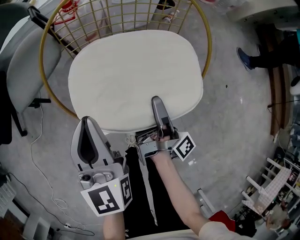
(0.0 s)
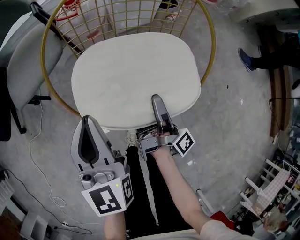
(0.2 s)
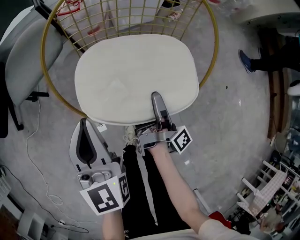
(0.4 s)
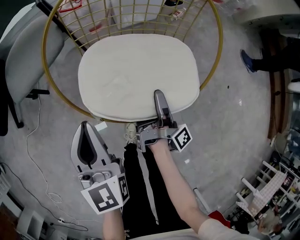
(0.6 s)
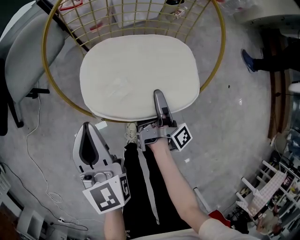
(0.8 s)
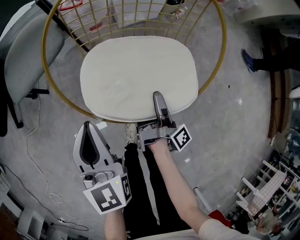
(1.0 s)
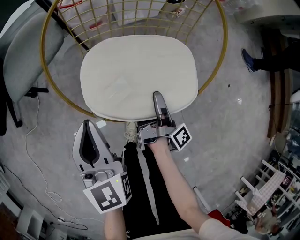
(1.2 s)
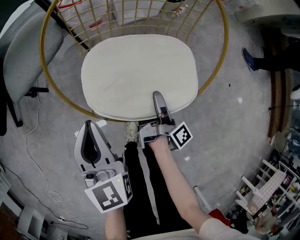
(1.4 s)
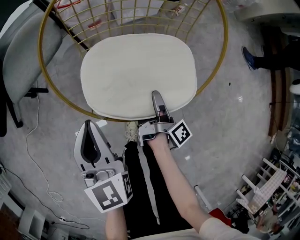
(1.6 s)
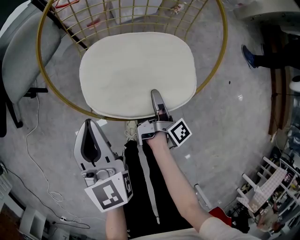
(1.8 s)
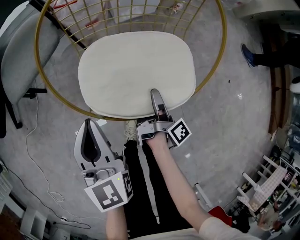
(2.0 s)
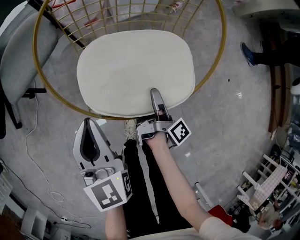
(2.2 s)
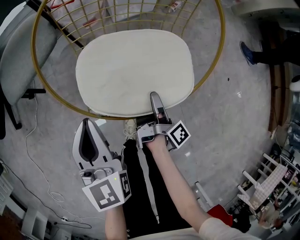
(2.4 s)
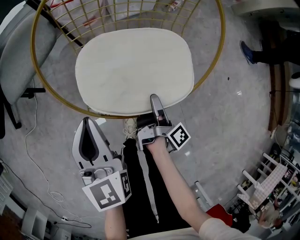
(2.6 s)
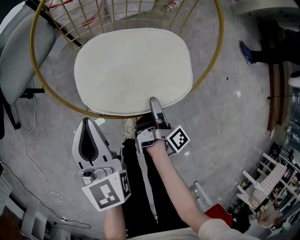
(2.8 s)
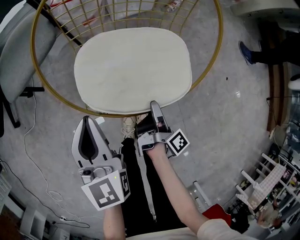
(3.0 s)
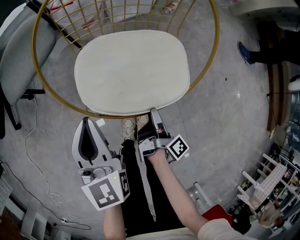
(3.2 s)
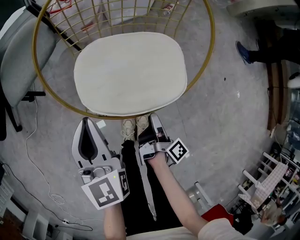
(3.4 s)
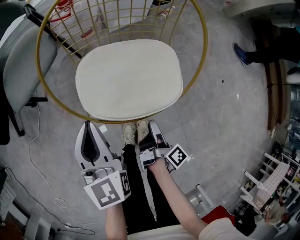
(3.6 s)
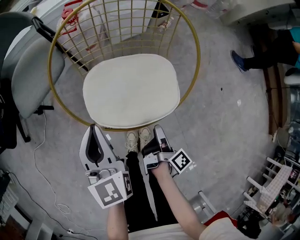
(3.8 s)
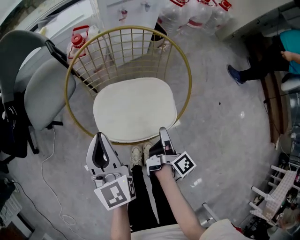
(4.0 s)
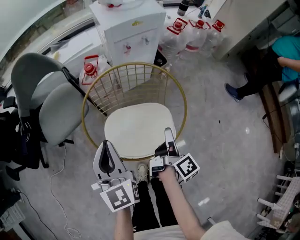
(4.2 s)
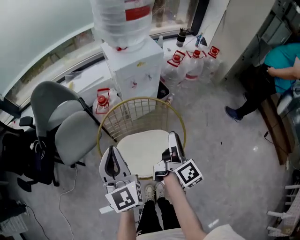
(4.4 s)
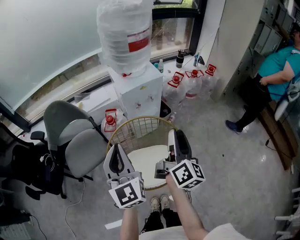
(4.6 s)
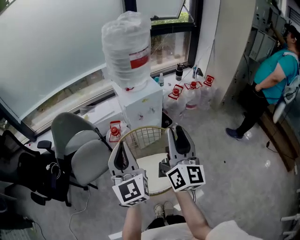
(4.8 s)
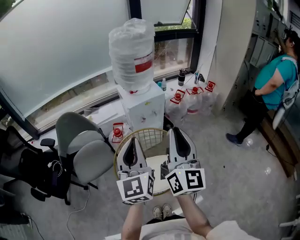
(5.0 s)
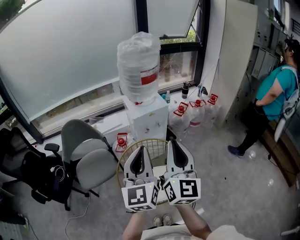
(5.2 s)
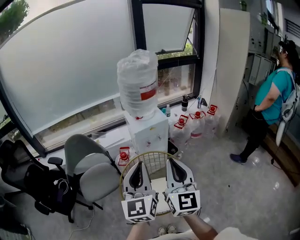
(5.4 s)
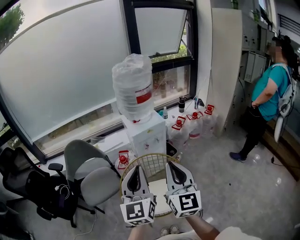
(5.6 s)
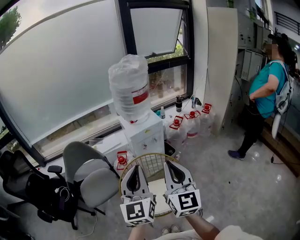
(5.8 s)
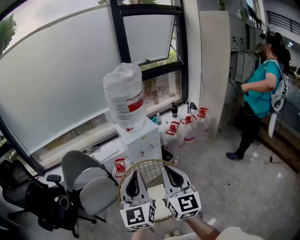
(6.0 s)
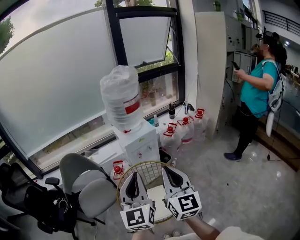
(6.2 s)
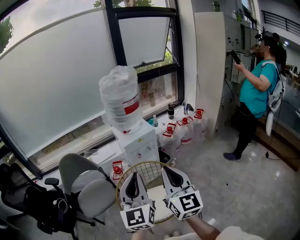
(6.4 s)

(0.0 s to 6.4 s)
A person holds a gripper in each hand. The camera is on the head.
0.0 s - 1.6 s: The left gripper heads downward, covering approximately 5 cm.
3.2 s - 4.8 s: The left gripper goes some 50 cm upward, and tips its fingers upward by approximately 30 degrees.
4.8 s - 6.4 s: The left gripper shifts by roughly 10 cm.

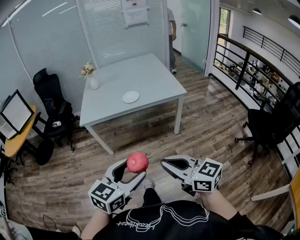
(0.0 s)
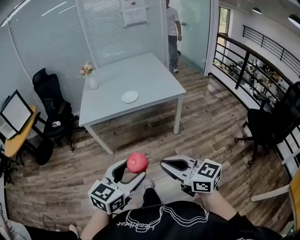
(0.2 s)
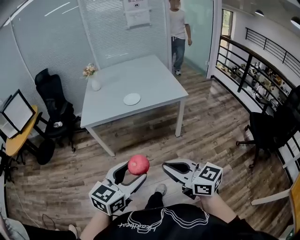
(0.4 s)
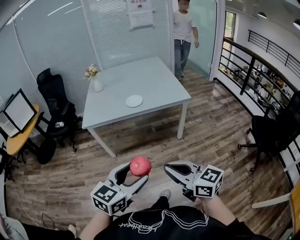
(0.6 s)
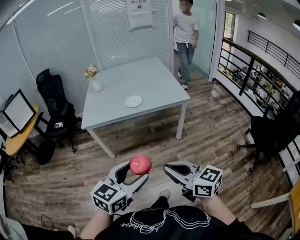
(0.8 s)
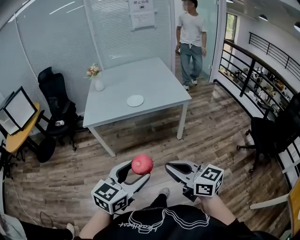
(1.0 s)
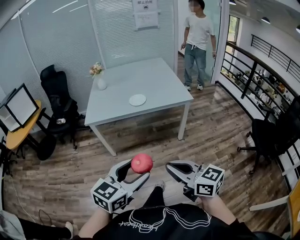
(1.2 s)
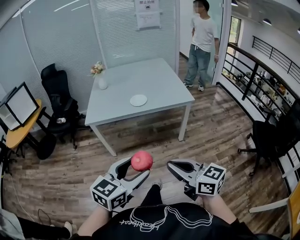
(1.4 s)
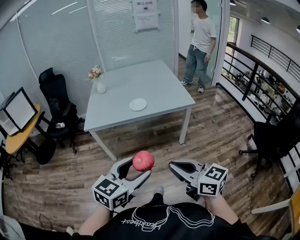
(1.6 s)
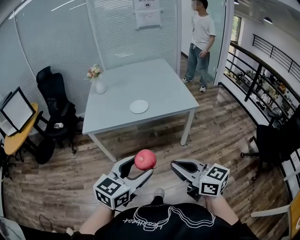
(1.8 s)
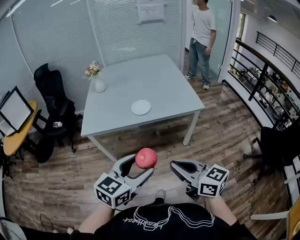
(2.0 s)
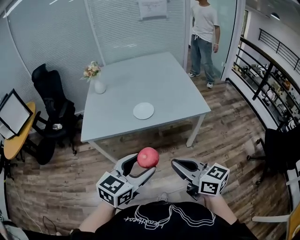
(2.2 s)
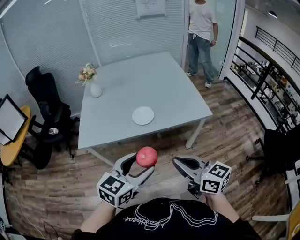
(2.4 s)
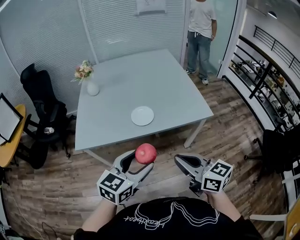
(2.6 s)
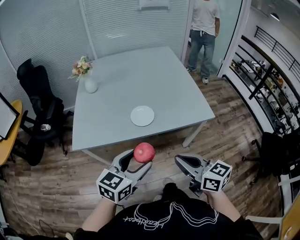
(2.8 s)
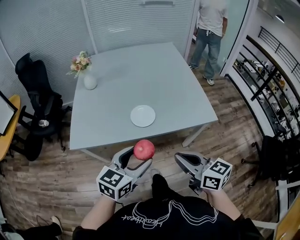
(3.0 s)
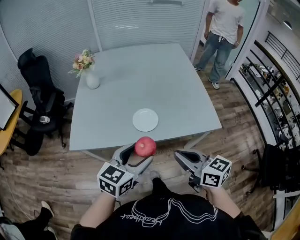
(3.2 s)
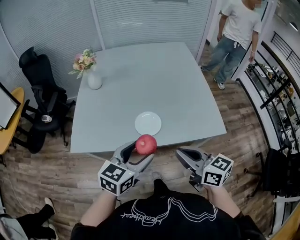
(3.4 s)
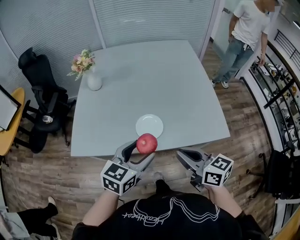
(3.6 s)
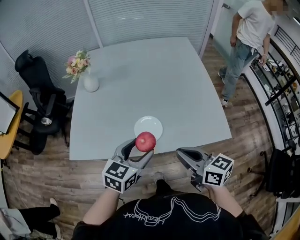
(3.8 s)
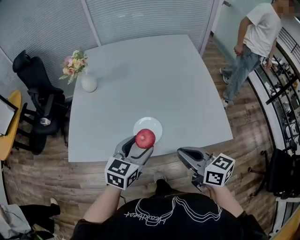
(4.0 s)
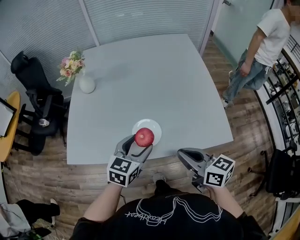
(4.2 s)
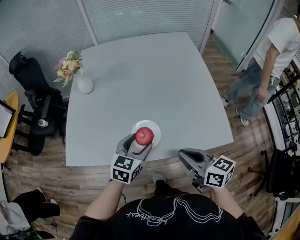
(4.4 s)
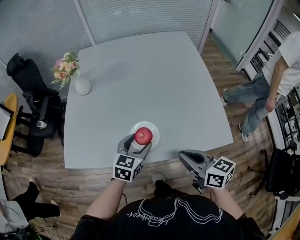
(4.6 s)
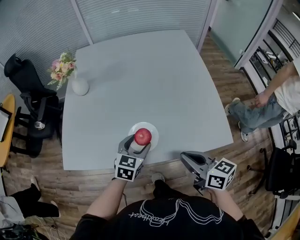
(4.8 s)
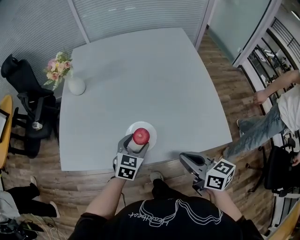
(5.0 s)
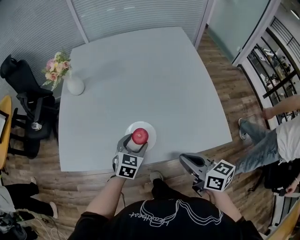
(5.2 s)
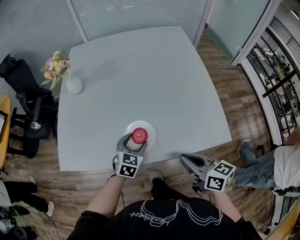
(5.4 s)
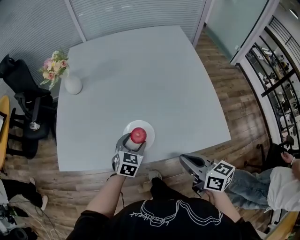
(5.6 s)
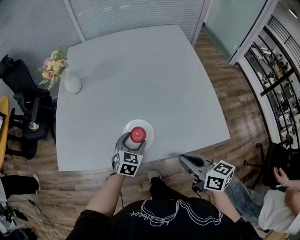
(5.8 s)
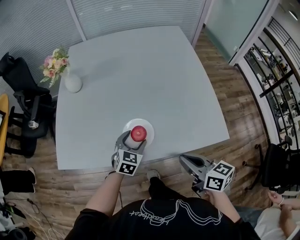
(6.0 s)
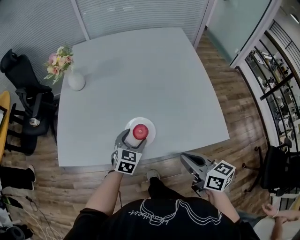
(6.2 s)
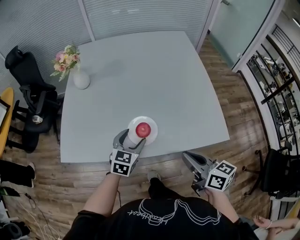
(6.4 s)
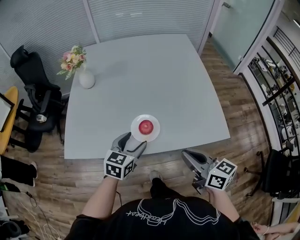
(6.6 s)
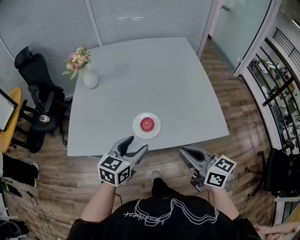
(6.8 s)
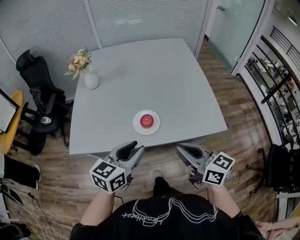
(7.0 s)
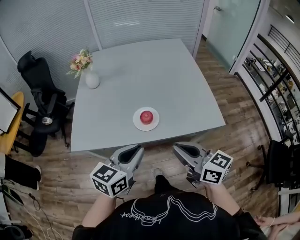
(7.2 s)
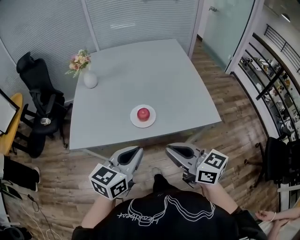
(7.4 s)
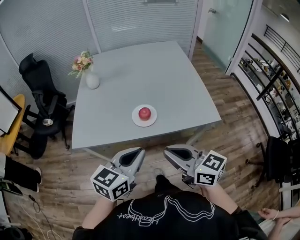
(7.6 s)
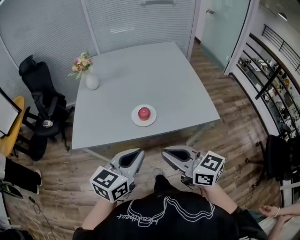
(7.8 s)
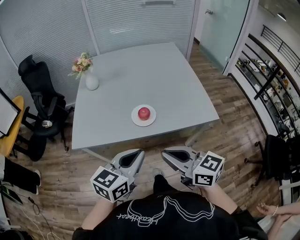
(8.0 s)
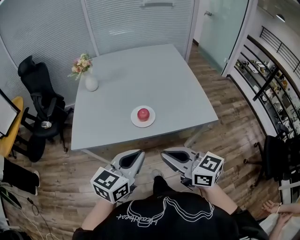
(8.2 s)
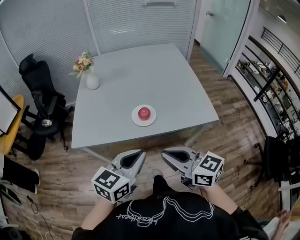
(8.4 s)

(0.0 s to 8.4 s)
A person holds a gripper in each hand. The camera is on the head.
0.0 s - 1.4 s: The grippers make only small movements.
1.4 s - 2.8 s: Both grippers move forward, about 40 cm.
2.8 s - 4.2 s: Both grippers move forward, roughly 25 cm.
4.2 s - 5.6 s: The right gripper shifts by roughly 5 cm; the left gripper heads downward and forward, covering roughly 15 cm.
5.6 s - 7.0 s: The right gripper moves upward, backward and to the left, roughly 15 cm. The left gripper heads upward and backward, covering roughly 25 cm, turns by approximately 30 degrees, and closes its fingers.
7.0 s - 8.4 s: The right gripper travels backward and to the left by about 15 cm; the left gripper shifts some 10 cm backward, and closes its fingers.

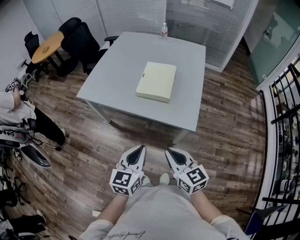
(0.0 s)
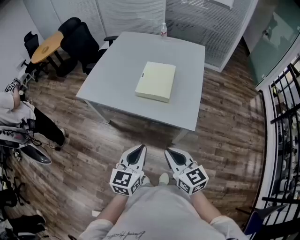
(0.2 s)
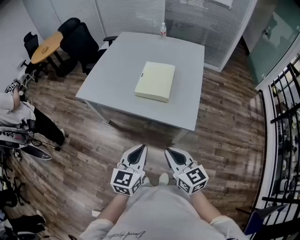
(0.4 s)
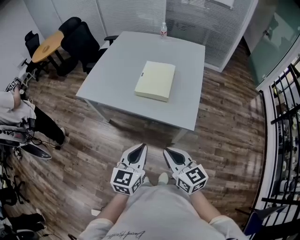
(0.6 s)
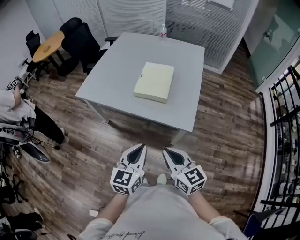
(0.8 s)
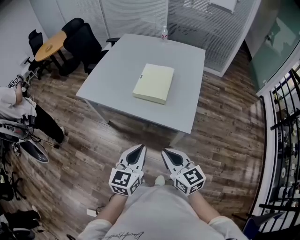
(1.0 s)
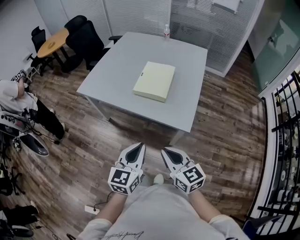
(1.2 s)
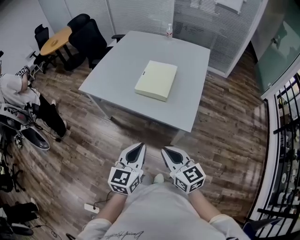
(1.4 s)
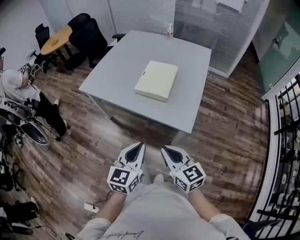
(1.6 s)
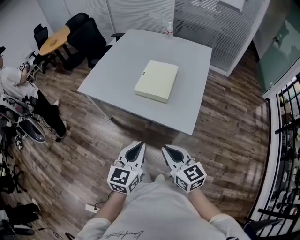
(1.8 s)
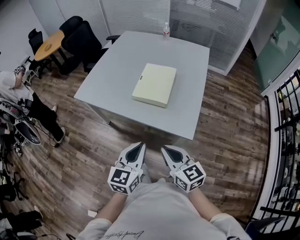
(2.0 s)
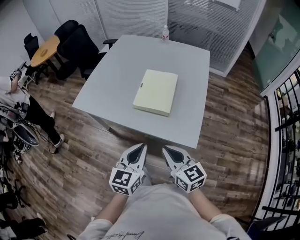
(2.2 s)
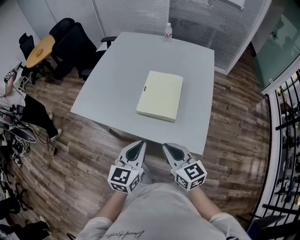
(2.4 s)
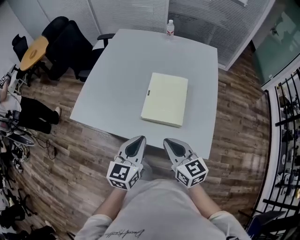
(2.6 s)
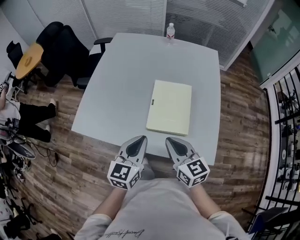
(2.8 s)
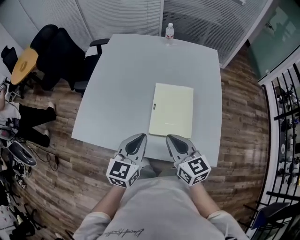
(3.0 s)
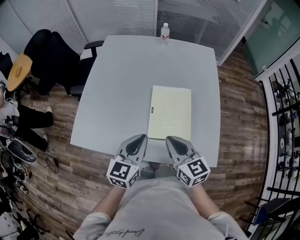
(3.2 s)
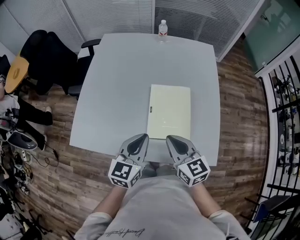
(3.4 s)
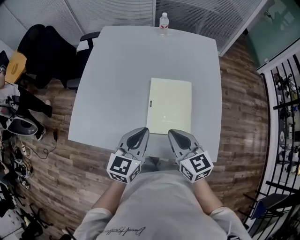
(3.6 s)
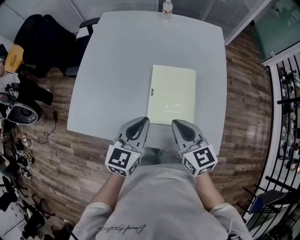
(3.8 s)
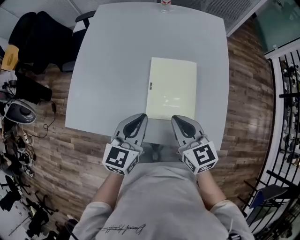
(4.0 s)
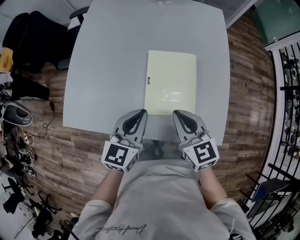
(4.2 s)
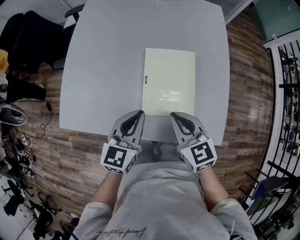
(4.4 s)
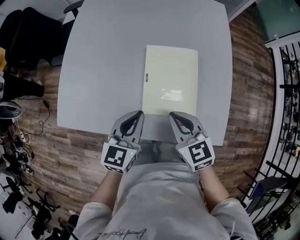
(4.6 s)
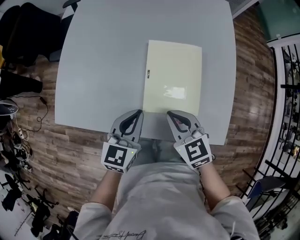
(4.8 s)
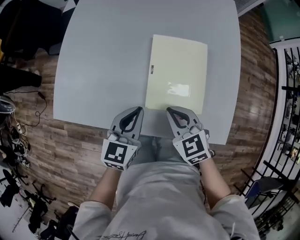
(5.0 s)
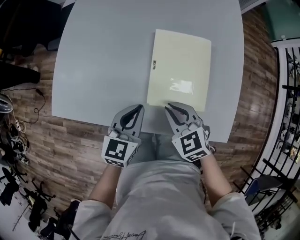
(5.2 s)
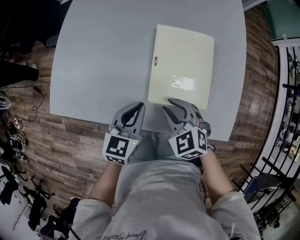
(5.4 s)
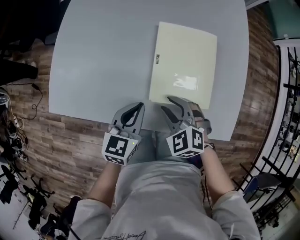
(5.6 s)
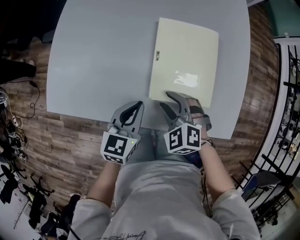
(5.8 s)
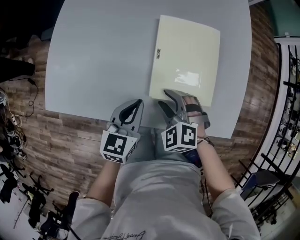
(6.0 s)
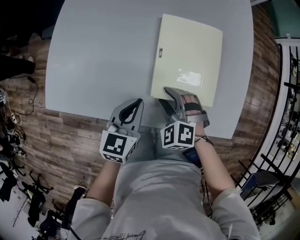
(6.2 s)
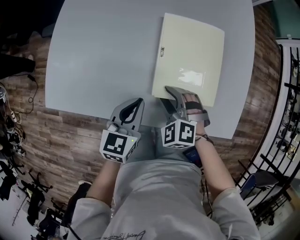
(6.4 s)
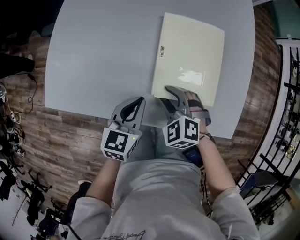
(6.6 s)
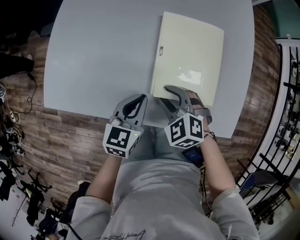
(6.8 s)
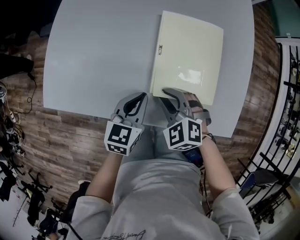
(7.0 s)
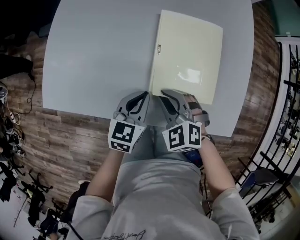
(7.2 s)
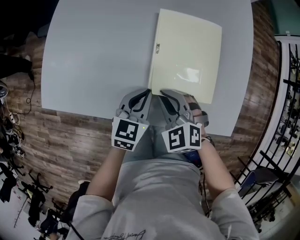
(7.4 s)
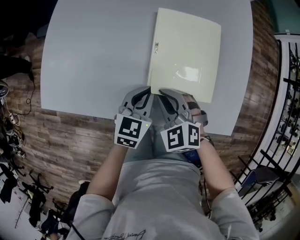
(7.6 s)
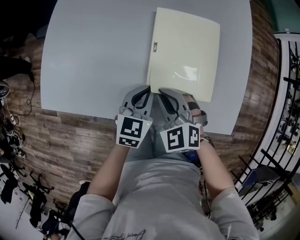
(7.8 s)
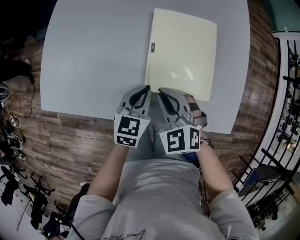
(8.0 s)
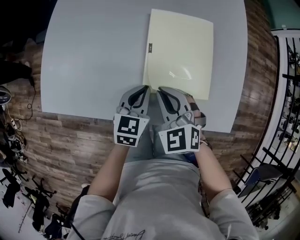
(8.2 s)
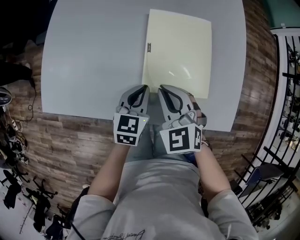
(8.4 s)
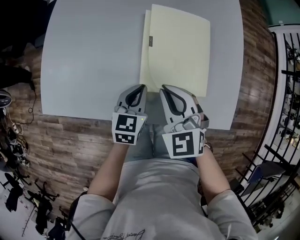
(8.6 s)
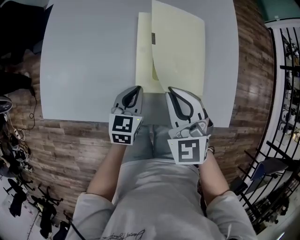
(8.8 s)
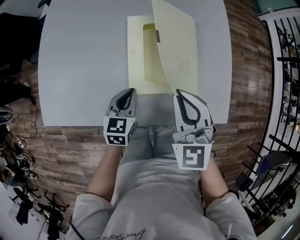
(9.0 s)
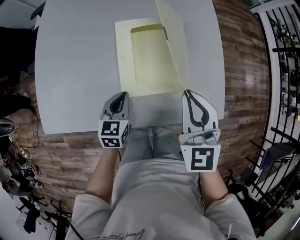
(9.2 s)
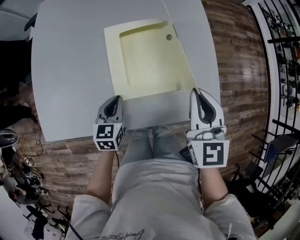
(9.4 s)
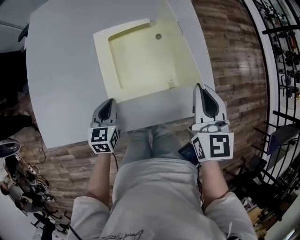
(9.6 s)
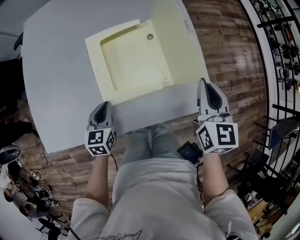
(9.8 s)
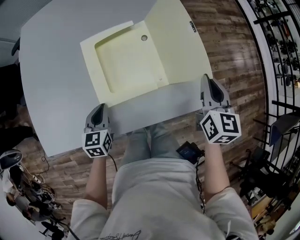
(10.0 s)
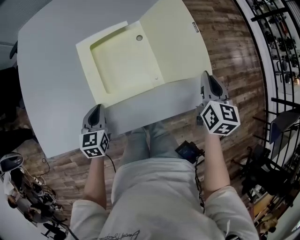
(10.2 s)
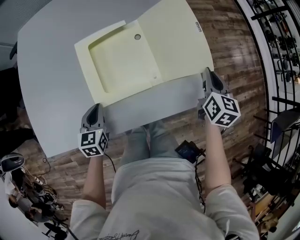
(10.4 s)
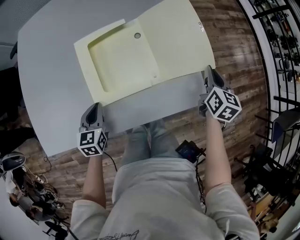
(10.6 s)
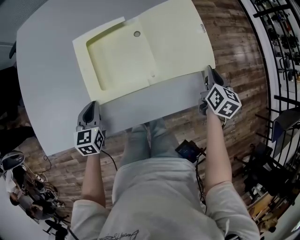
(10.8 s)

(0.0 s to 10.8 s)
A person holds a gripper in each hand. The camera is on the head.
0.0 s - 1.6 s: There are only small adjustments of the grippers.
1.6 s - 3.0 s: Both grippers move forward, some 35 cm.
3.0 s - 4.6 s: The two grippers go approximately 5 cm downward.
4.6 s - 6.2 s: The right gripper heads downward and to the left, covering about 15 cm, rotates around the line of its fingers by about 50 degrees, counterclockwise from behind, and opens. Meanwhile the left gripper travels downward by some 10 cm.
6.2 s - 7.8 s: The right gripper closes up; the left gripper is displaced to the right by roughly 5 cm.
7.8 s - 9.2 s: The right gripper moves upward and to the right, about 20 cm, and turns by some 50 degrees.
9.2 s - 10.8 s: The right gripper heads to the right and downward, covering approximately 30 cm, and rotates approximately 50 degrees.
